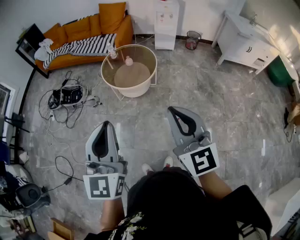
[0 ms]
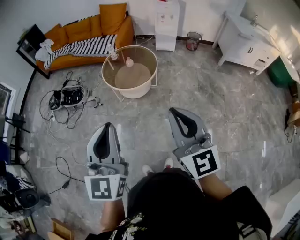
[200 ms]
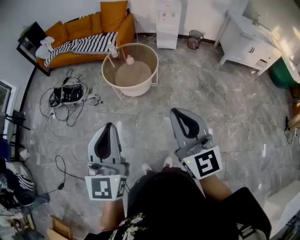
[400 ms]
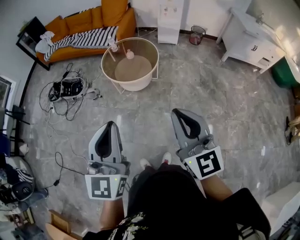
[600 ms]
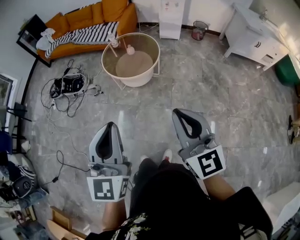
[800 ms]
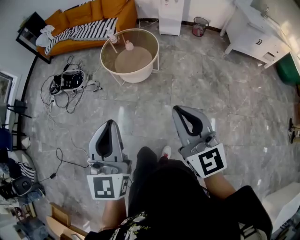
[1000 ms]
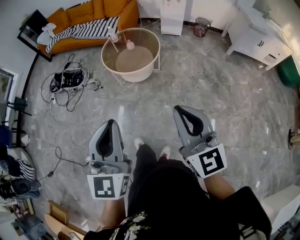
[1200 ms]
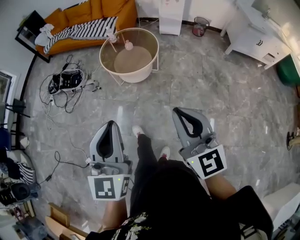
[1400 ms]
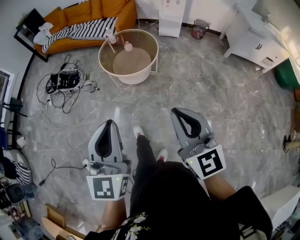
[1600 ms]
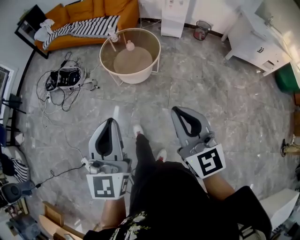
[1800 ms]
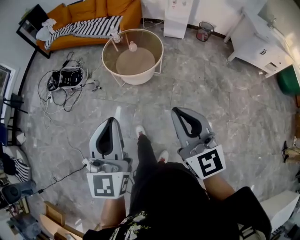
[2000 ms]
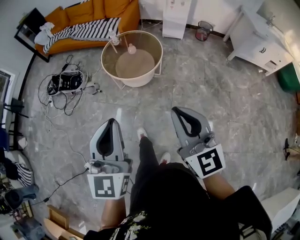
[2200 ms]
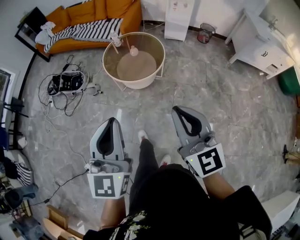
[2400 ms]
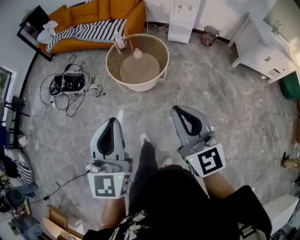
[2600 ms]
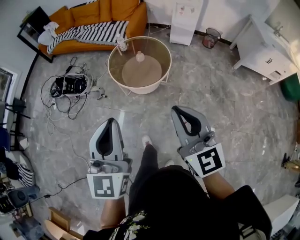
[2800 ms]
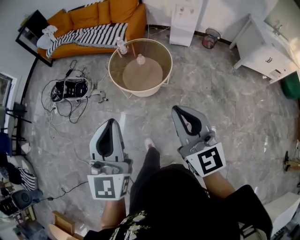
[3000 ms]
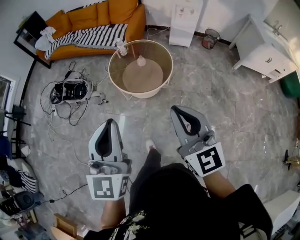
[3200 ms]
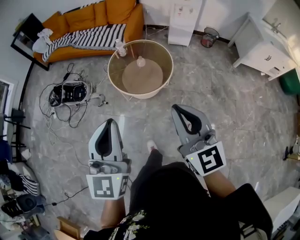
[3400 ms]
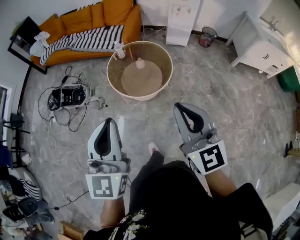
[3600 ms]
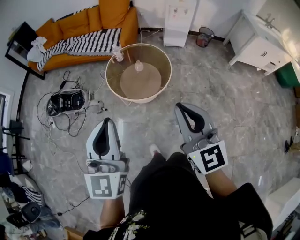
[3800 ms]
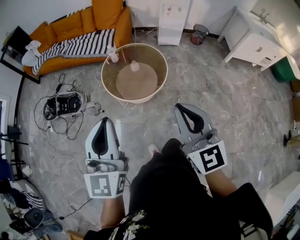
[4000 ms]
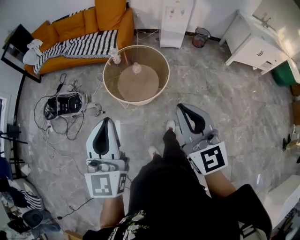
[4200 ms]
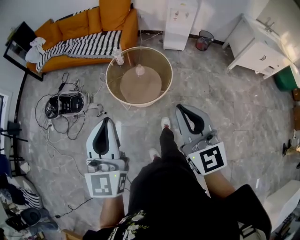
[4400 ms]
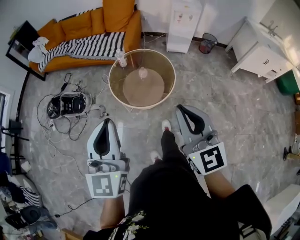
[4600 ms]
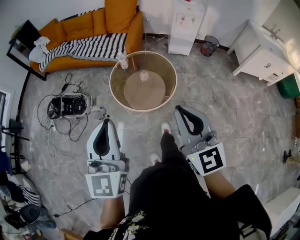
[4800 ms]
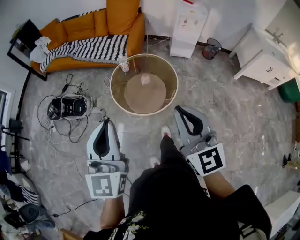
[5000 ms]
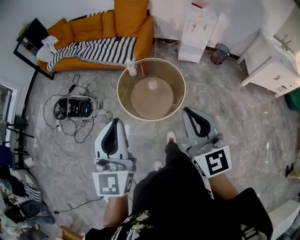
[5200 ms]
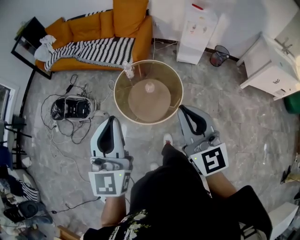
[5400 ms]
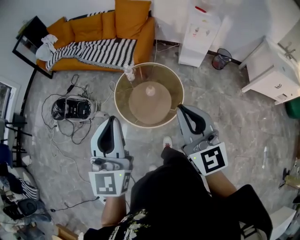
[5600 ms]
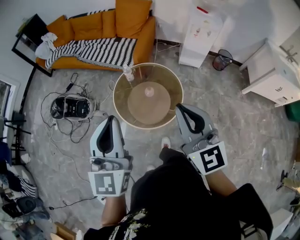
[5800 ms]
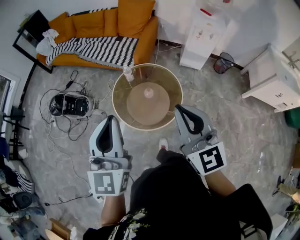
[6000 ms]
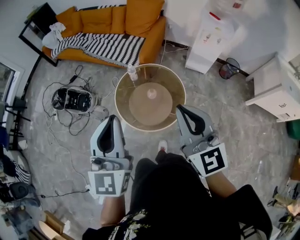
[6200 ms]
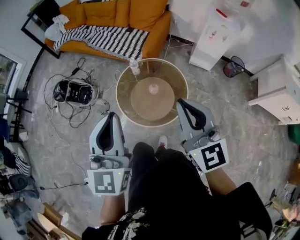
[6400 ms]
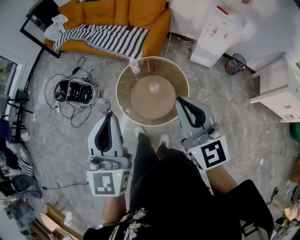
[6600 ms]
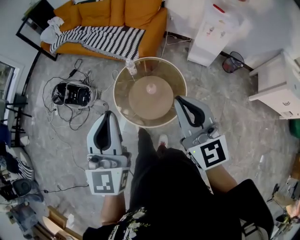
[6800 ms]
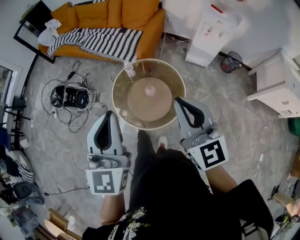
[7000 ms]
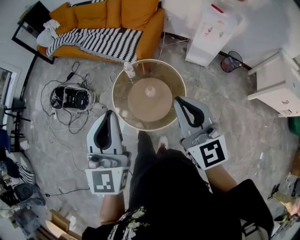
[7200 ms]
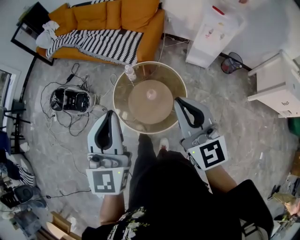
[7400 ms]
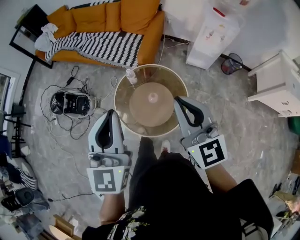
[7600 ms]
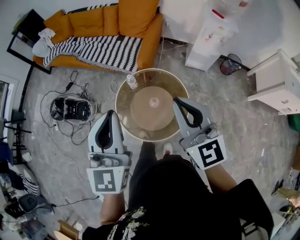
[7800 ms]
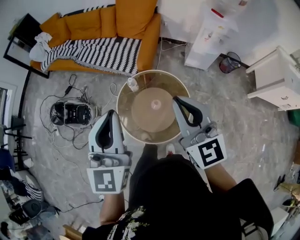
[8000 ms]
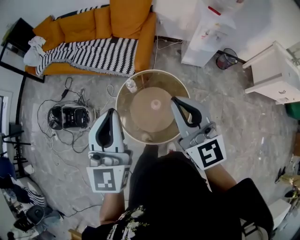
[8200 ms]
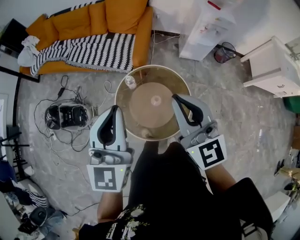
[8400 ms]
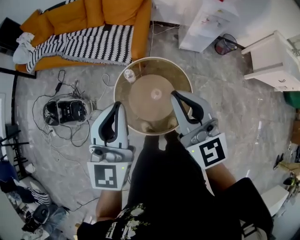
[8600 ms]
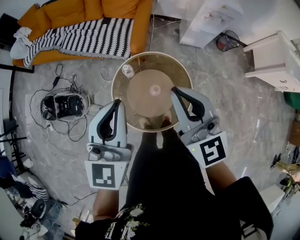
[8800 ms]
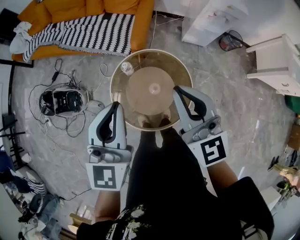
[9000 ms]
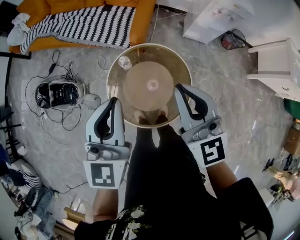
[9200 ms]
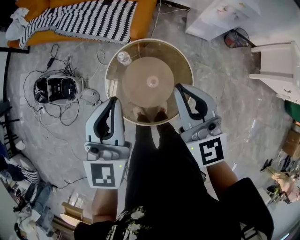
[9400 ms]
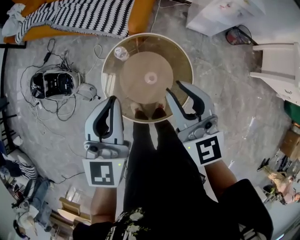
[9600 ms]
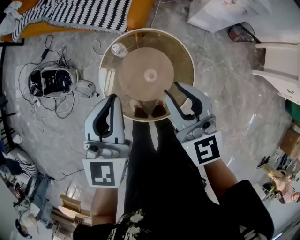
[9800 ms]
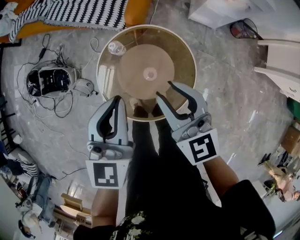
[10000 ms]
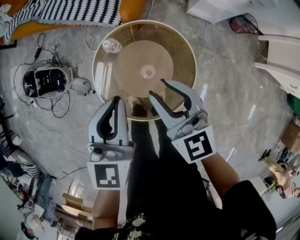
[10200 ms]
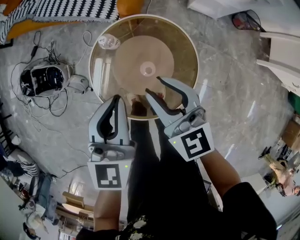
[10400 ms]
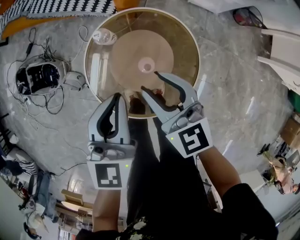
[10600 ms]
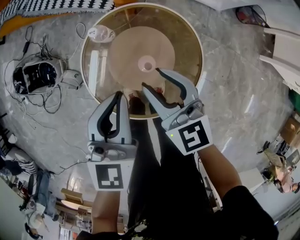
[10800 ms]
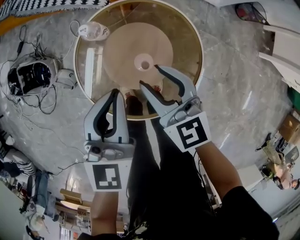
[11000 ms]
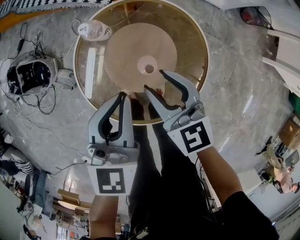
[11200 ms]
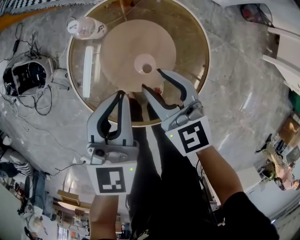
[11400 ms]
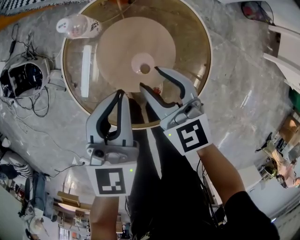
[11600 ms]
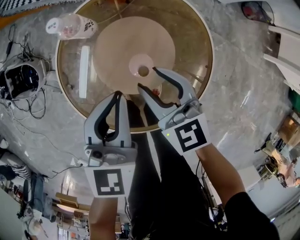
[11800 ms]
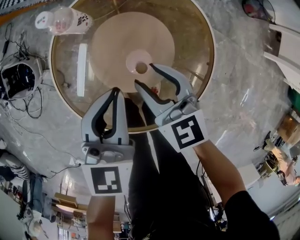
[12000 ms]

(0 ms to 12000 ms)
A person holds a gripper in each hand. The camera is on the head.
0 ms - 1600 ms: The grippers both shift to the right and downward by roughly 10 cm.
1600 ms - 3000 ms: The grippers both shift forward by about 20 cm.
3000 ms - 4400 ms: The grippers both shift forward and to the left by approximately 15 cm.
4400 ms - 6000 ms: Both grippers move forward, some 25 cm.
6000 ms - 7600 ms: The grippers both shift forward by roughly 15 cm.
7600 ms - 9000 ms: Both grippers move forward and downward, approximately 20 cm.
9000 ms - 10400 ms: Both grippers move downward, about 25 cm. The right gripper opens.
10400 ms - 12000 ms: Both grippers move downward, roughly 30 cm.

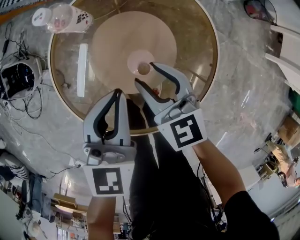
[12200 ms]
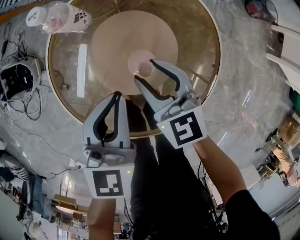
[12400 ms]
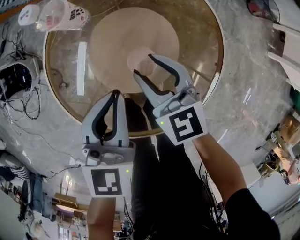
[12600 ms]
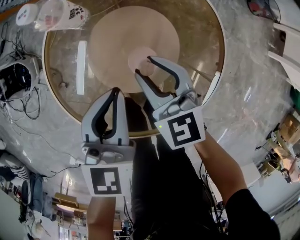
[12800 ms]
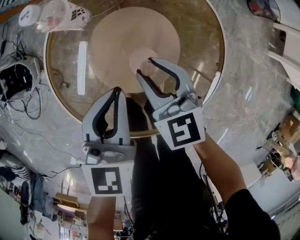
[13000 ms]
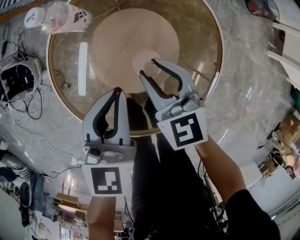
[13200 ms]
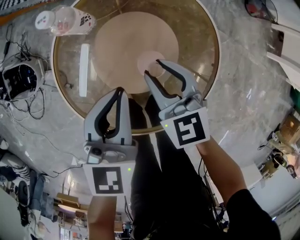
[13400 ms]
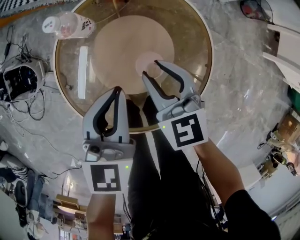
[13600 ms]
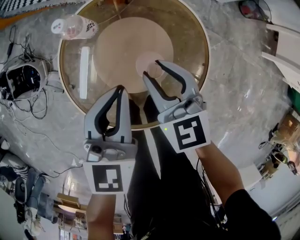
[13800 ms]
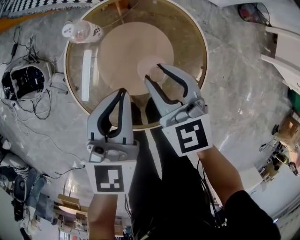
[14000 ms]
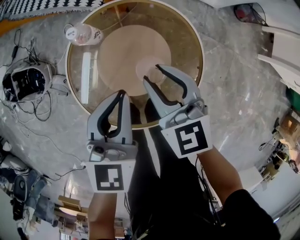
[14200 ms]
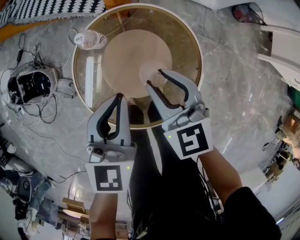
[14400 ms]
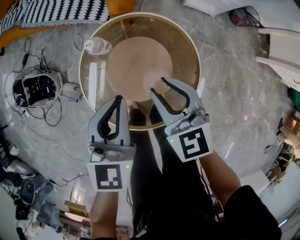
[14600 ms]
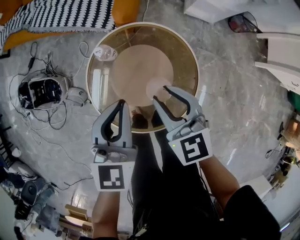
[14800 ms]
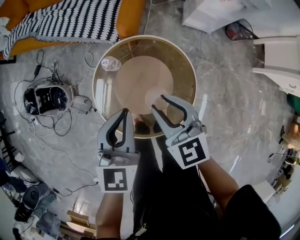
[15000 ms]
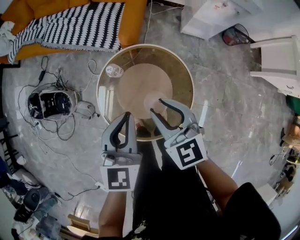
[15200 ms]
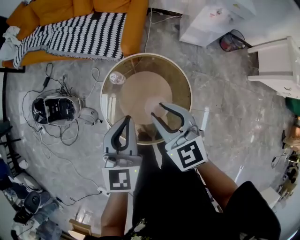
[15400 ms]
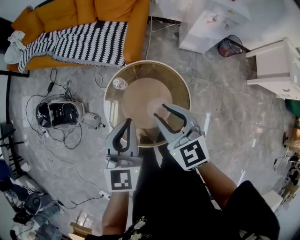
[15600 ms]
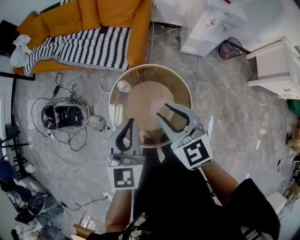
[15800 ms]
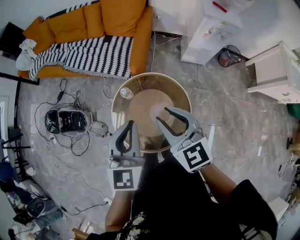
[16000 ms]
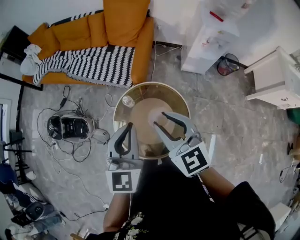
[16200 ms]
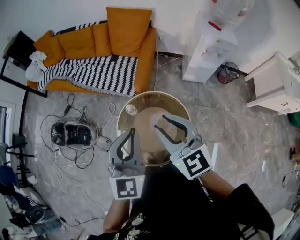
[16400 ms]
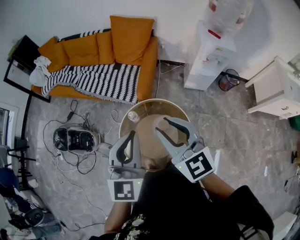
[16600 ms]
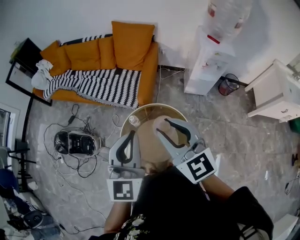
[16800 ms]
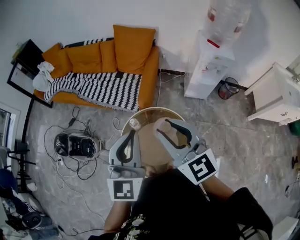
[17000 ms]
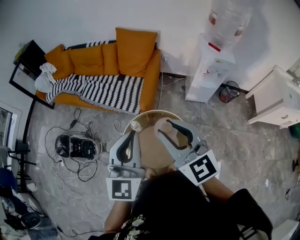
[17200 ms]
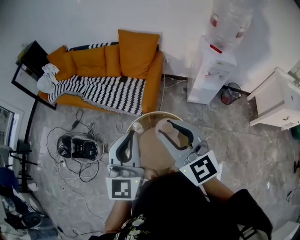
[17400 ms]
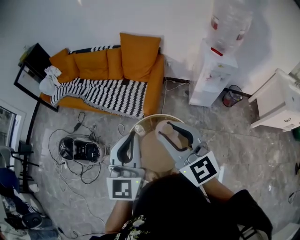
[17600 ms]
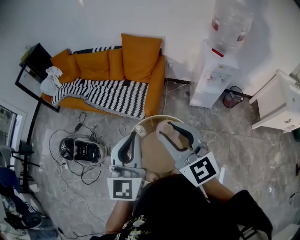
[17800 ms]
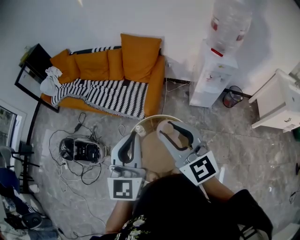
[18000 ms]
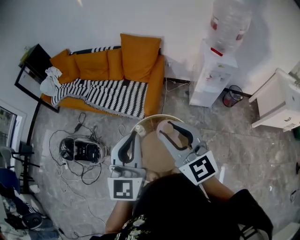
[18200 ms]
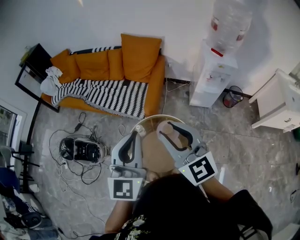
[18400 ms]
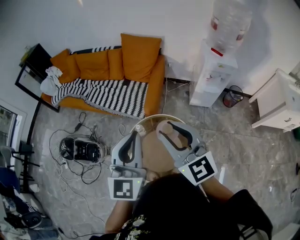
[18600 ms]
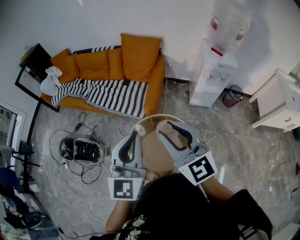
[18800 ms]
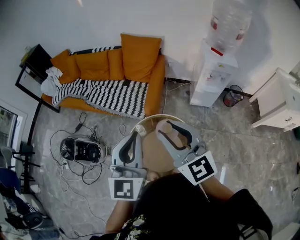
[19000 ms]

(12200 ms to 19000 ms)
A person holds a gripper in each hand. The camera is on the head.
12200 ms - 13600 ms: The grippers move only a little.
13600 ms - 15000 ms: Both grippers travel together upward, approximately 25 cm.
15000 ms - 16200 ms: The grippers both shift upward by roughly 25 cm.
16200 ms - 17600 ms: Both grippers travel together upward, approximately 15 cm.
17600 ms - 19000 ms: Both grippers stay about where they are.

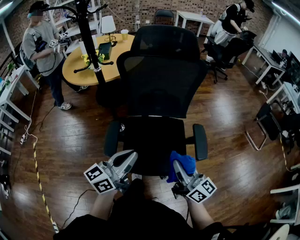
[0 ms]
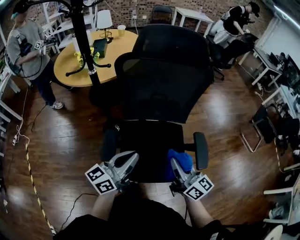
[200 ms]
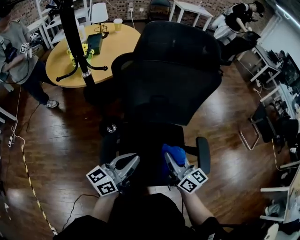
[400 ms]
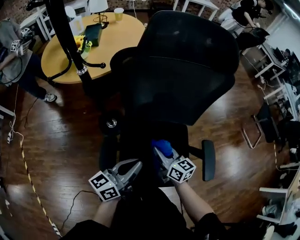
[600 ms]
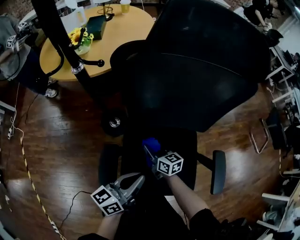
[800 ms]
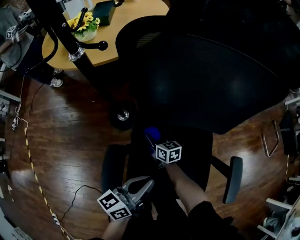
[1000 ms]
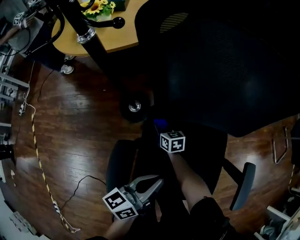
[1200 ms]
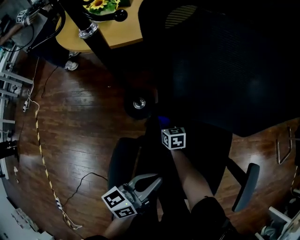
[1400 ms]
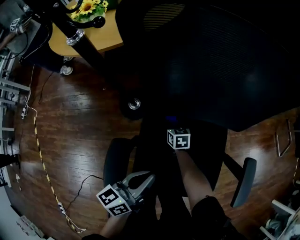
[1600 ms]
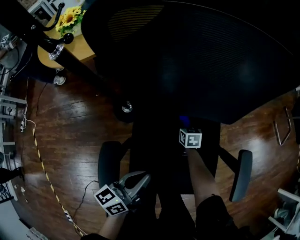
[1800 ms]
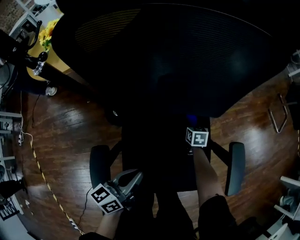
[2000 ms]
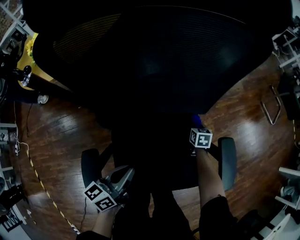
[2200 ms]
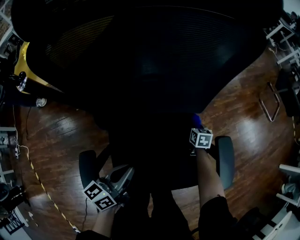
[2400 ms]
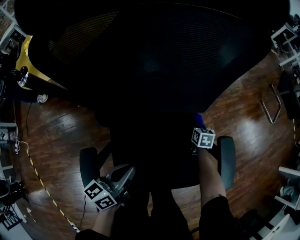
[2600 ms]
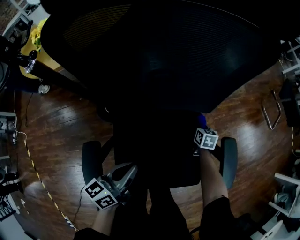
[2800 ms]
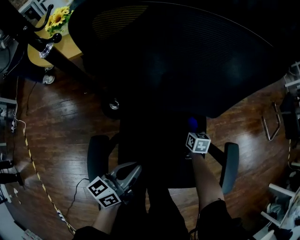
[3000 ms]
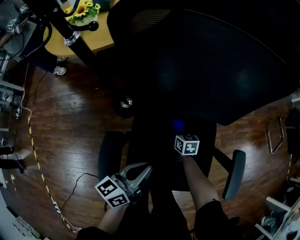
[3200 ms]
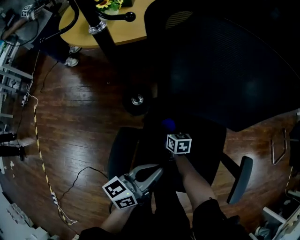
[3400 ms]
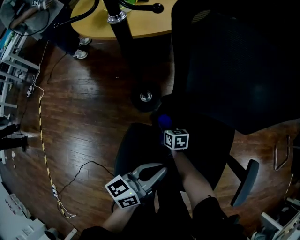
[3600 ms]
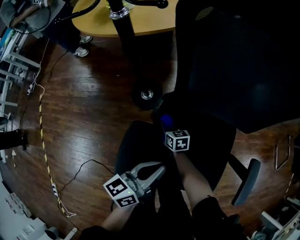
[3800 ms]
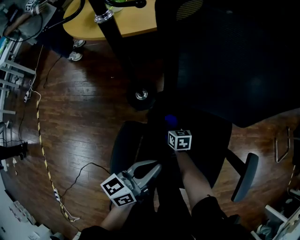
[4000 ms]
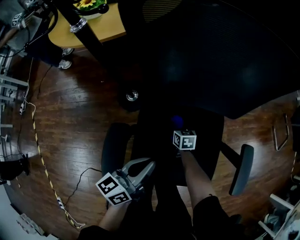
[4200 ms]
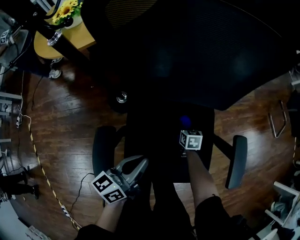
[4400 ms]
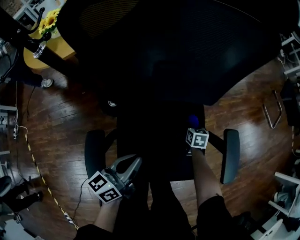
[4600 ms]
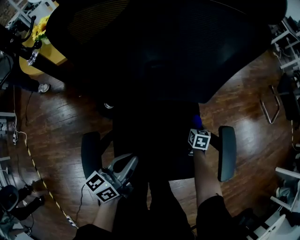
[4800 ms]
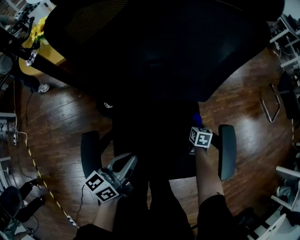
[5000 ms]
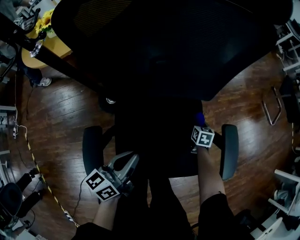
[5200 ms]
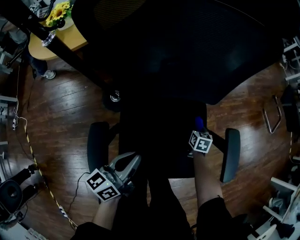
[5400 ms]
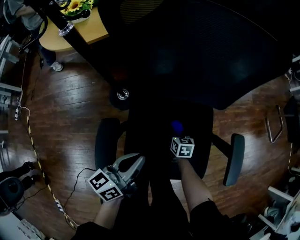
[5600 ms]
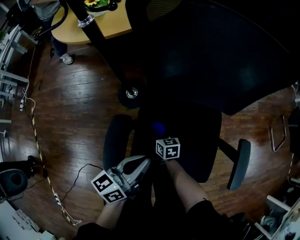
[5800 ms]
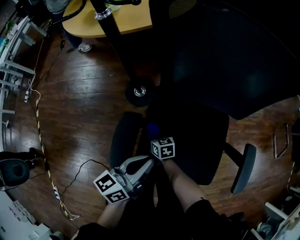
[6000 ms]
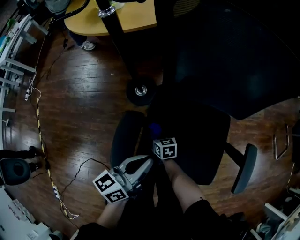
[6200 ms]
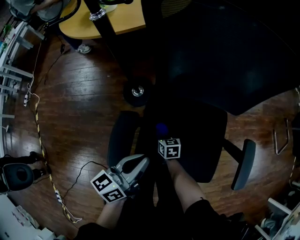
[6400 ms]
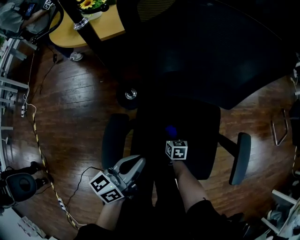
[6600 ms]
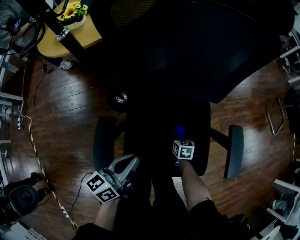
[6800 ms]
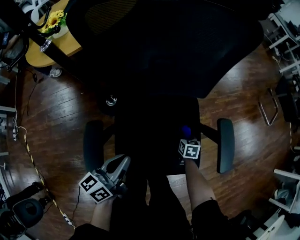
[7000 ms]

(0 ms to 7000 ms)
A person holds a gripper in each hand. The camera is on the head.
0 ms - 1400 ms: The right gripper shifts about 70 cm downward, forward and to the left, and tips its fingers downward by some 50 degrees. The left gripper goes approximately 30 cm downward and forward, and swivels some 20 degrees.
1400 ms - 2800 ms: The right gripper moves some 40 cm, and changes its angle by approximately 30 degrees. The left gripper changes place by some 5 cm.
2800 ms - 4200 ms: The right gripper rotates some 20 degrees.
4200 ms - 5600 ms: The right gripper moves approximately 25 cm to the right and comes back.
5600 ms - 7000 ms: The right gripper ends up approximately 15 cm from where it was.
